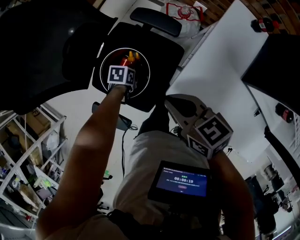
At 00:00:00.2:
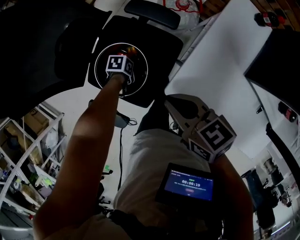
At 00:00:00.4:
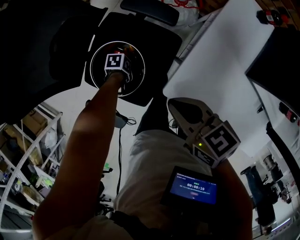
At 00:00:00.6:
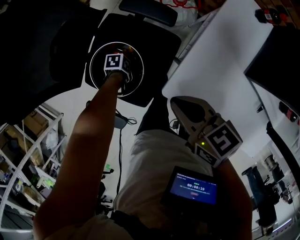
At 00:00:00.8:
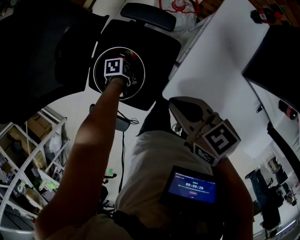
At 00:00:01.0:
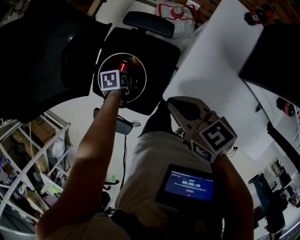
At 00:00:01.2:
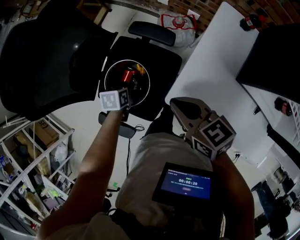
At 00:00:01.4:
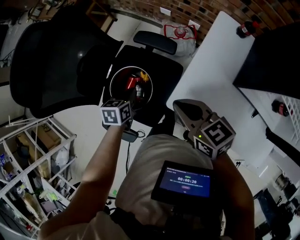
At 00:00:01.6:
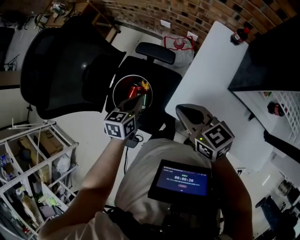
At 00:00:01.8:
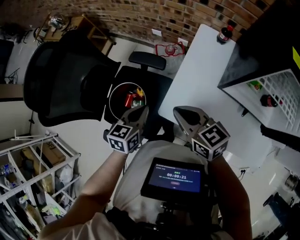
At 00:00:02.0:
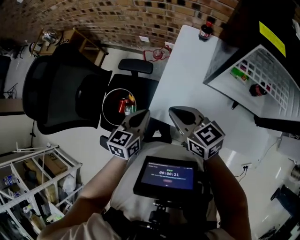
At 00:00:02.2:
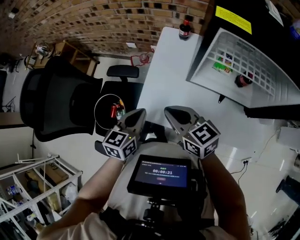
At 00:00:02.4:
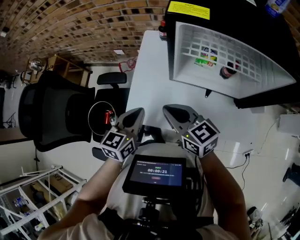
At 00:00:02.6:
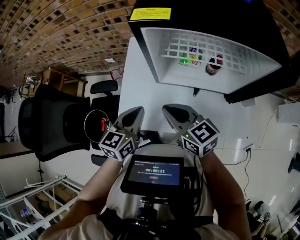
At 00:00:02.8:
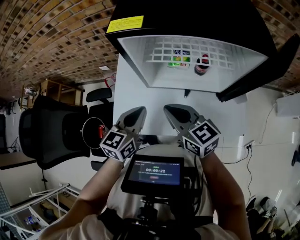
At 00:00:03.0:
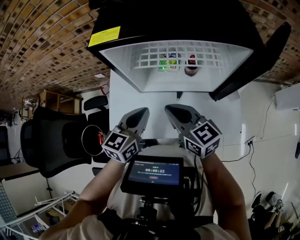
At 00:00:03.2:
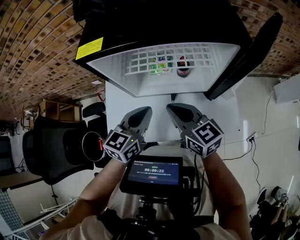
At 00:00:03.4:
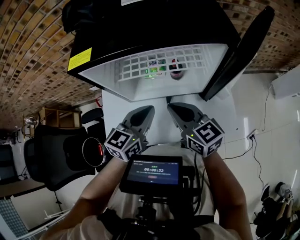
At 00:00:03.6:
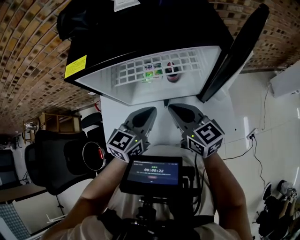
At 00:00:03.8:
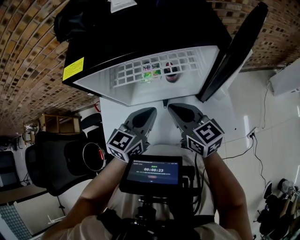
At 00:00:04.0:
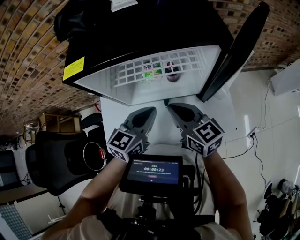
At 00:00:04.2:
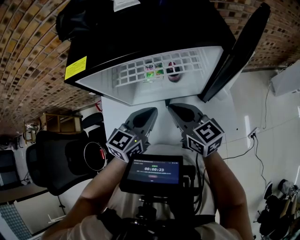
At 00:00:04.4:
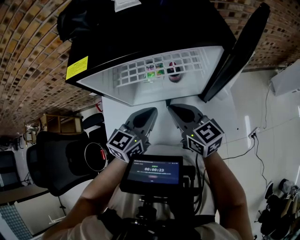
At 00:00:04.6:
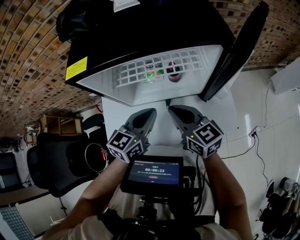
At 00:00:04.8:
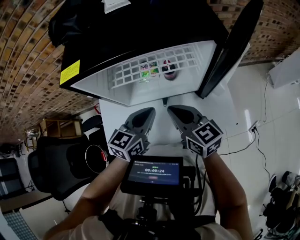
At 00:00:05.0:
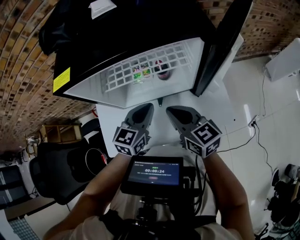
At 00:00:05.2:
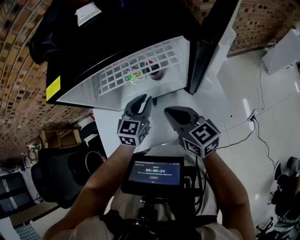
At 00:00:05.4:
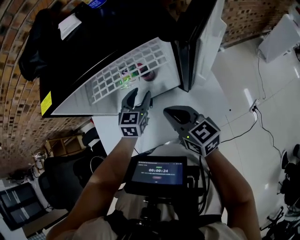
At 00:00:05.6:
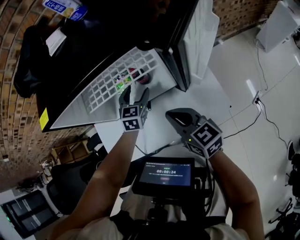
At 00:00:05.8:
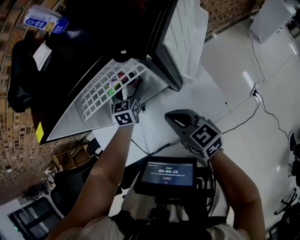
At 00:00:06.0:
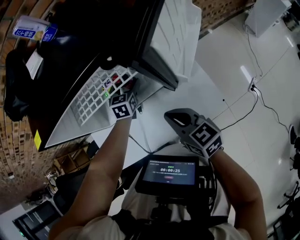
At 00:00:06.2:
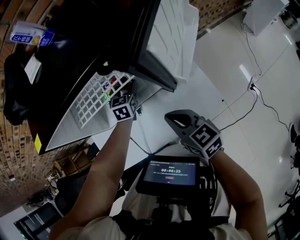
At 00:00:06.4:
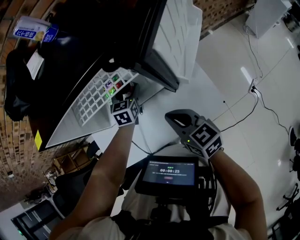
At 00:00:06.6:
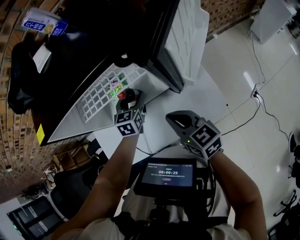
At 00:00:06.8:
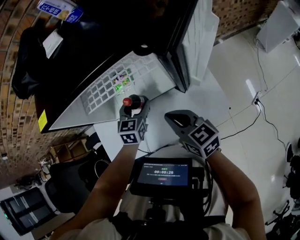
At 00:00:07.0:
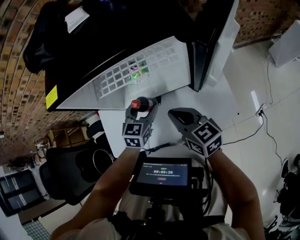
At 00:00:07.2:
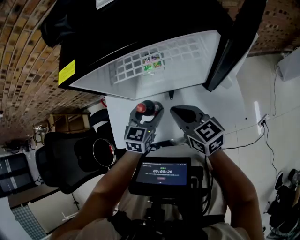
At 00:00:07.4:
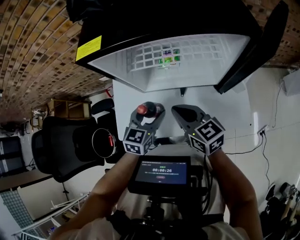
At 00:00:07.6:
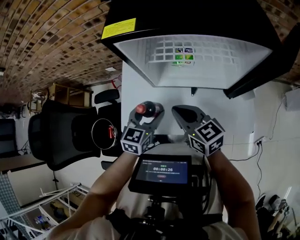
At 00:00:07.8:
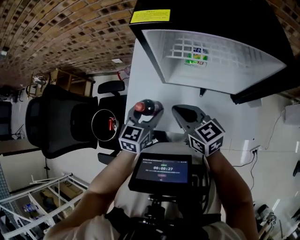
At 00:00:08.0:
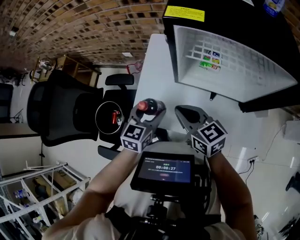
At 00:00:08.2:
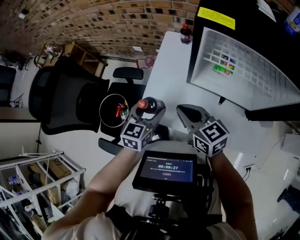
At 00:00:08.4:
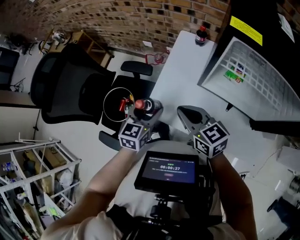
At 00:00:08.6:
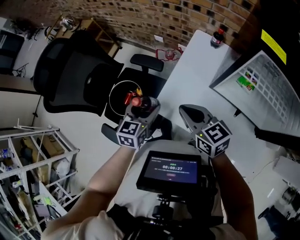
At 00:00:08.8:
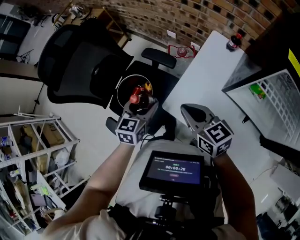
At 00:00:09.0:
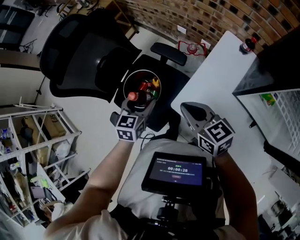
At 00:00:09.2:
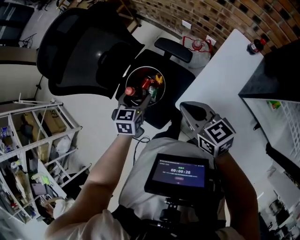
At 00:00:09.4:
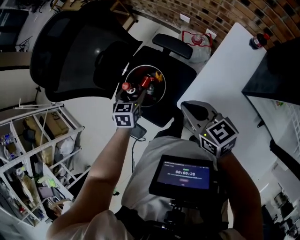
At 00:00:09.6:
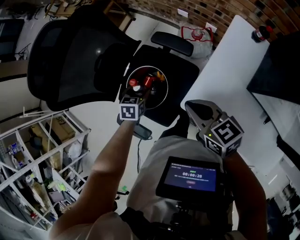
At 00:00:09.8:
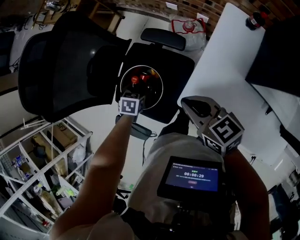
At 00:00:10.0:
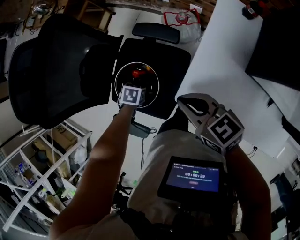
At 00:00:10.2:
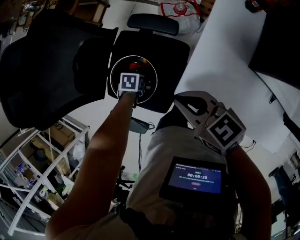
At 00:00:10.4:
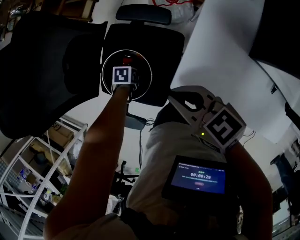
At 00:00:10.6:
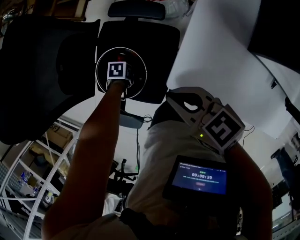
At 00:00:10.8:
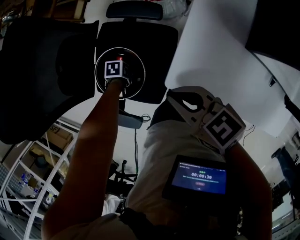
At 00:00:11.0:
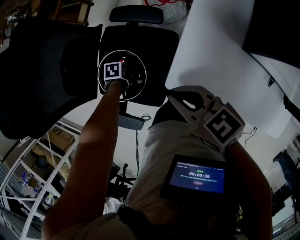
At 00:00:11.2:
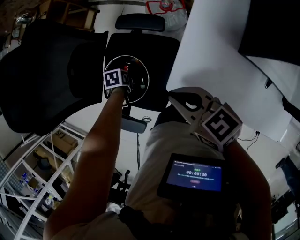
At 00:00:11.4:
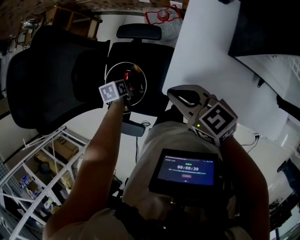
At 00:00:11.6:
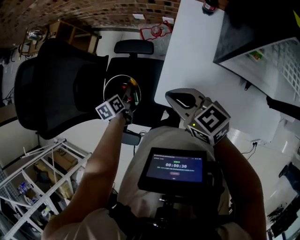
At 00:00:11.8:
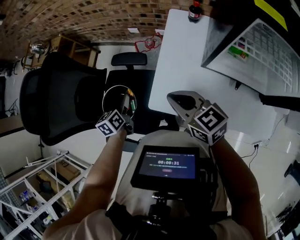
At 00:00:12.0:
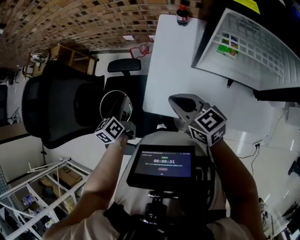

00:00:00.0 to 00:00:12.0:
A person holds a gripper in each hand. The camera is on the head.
00:00:00.0 to 00:00:01.6: The right gripper goes approximately 5 cm upward. Meanwhile the left gripper heads upward, covering some 25 cm, swivels some 40 degrees, and closes up.
00:00:01.6 to 00:00:03.0: The left gripper ends up approximately 50 cm from where it was, and rotates about 40 degrees. The right gripper ends up roughly 35 cm from where it was, and swivels approximately 40 degrees.
00:00:03.0 to 00:00:04.4: The grippers both shift to the right by approximately 10 cm.
00:00:04.4 to 00:00:06.0: The right gripper shifts approximately 15 cm to the right and downward, while the left gripper moves forward, downward and to the right, roughly 25 cm, turns by about 30 degrees, and opens its fingers.
00:00:06.0 to 00:00:07.6: The left gripper shifts about 30 cm to the left and backward. The right gripper moves to the left, approximately 20 cm, and swivels approximately 20 degrees.
00:00:07.6 to 00:00:09.0: The left gripper moves some 40 cm, and swivels roughly 50 degrees. Meanwhile the right gripper changes place by about 30 cm, and swivels some 40 degrees.
00:00:09.0 to 00:00:10.4: The left gripper goes about 30 cm downward, and tips its fingers downward by about 50 degrees. The right gripper changes place by roughly 10 cm.
00:00:10.4 to 00:00:12.0: The left gripper heads upward, covering approximately 30 cm, angles its fingers upward, by approximately 50 degrees, and closes. The right gripper shifts by roughly 20 cm, and swivels some 30 degrees.

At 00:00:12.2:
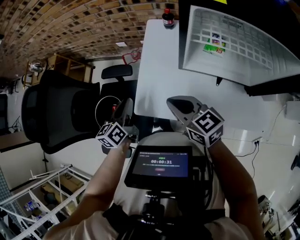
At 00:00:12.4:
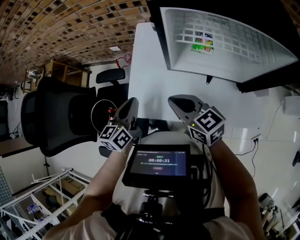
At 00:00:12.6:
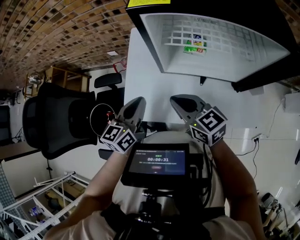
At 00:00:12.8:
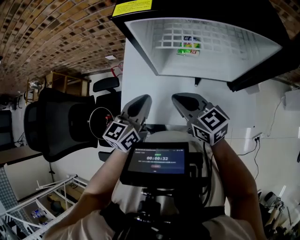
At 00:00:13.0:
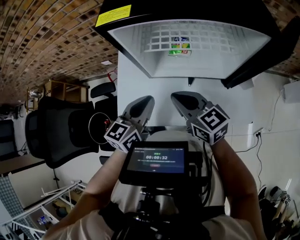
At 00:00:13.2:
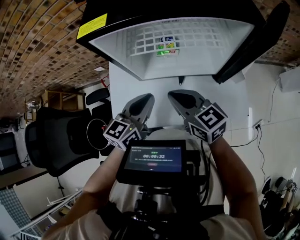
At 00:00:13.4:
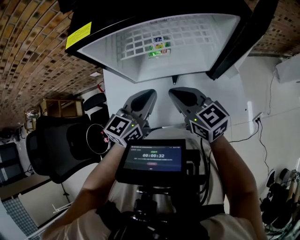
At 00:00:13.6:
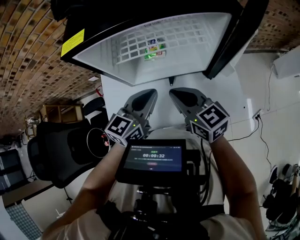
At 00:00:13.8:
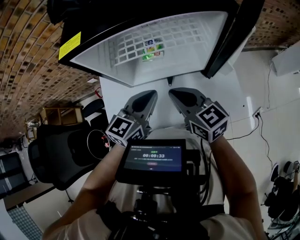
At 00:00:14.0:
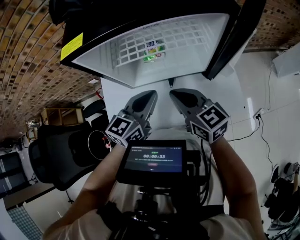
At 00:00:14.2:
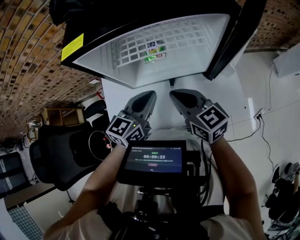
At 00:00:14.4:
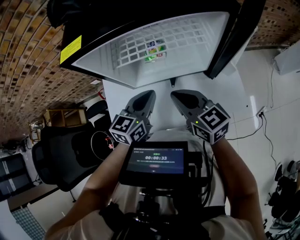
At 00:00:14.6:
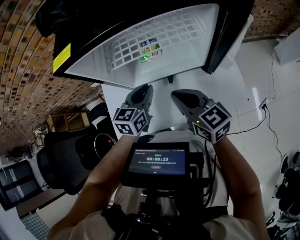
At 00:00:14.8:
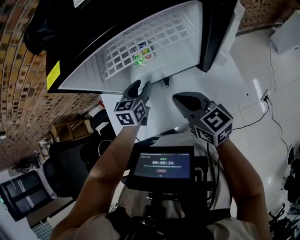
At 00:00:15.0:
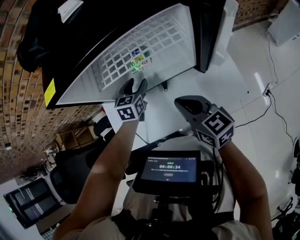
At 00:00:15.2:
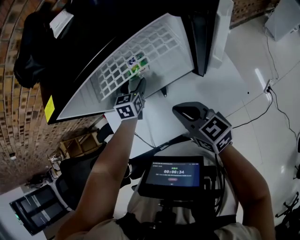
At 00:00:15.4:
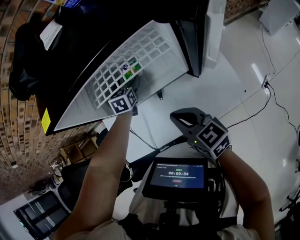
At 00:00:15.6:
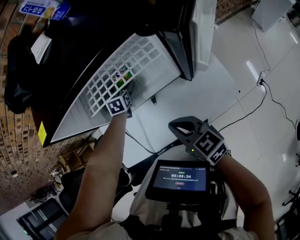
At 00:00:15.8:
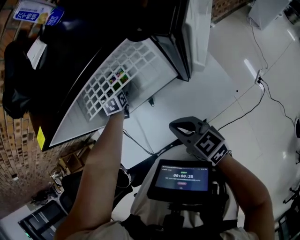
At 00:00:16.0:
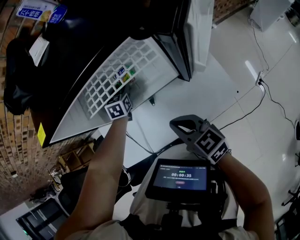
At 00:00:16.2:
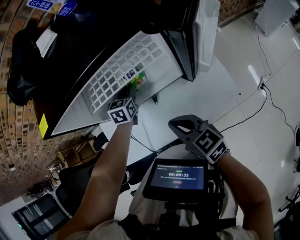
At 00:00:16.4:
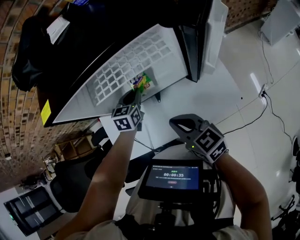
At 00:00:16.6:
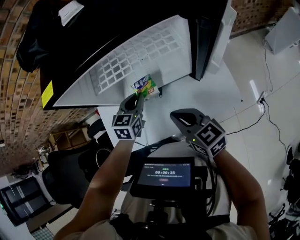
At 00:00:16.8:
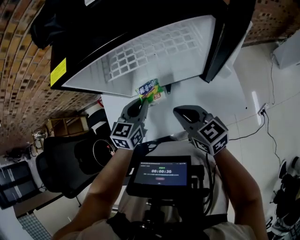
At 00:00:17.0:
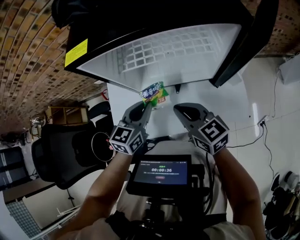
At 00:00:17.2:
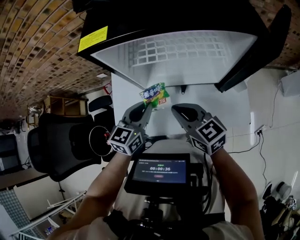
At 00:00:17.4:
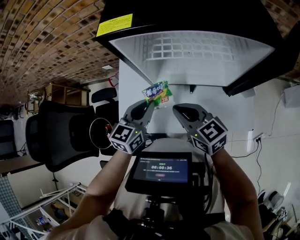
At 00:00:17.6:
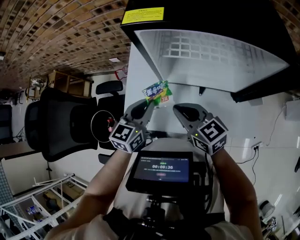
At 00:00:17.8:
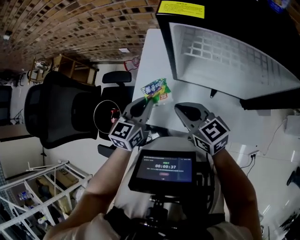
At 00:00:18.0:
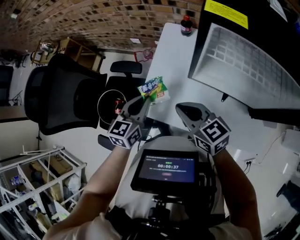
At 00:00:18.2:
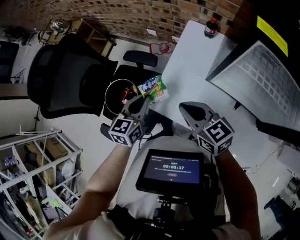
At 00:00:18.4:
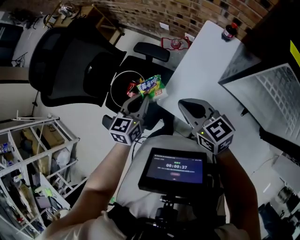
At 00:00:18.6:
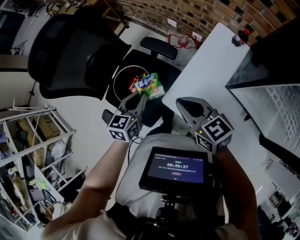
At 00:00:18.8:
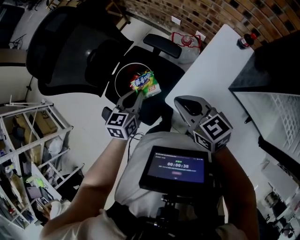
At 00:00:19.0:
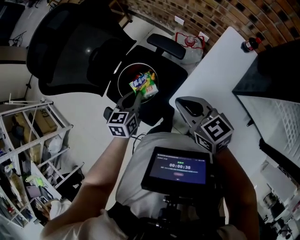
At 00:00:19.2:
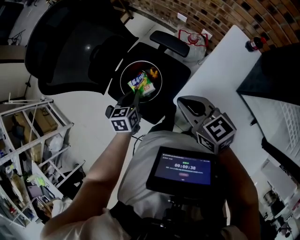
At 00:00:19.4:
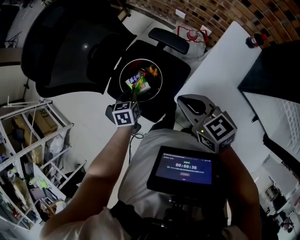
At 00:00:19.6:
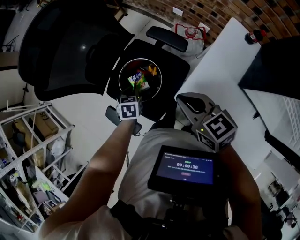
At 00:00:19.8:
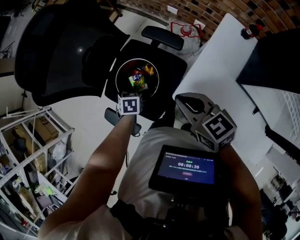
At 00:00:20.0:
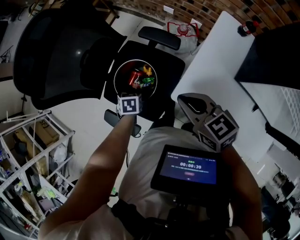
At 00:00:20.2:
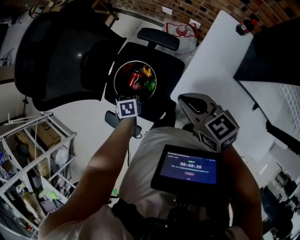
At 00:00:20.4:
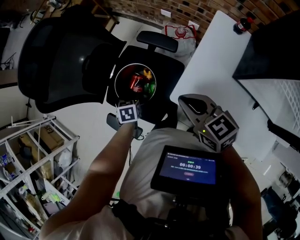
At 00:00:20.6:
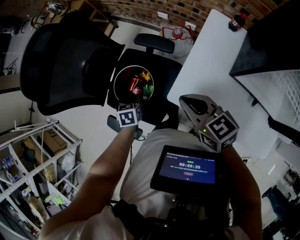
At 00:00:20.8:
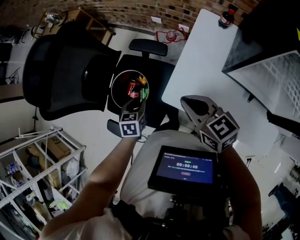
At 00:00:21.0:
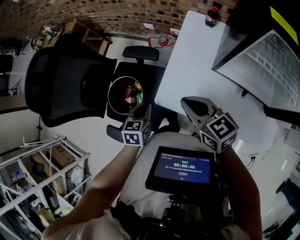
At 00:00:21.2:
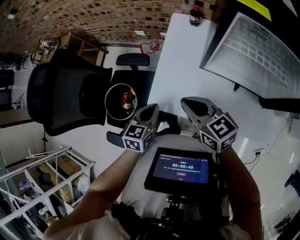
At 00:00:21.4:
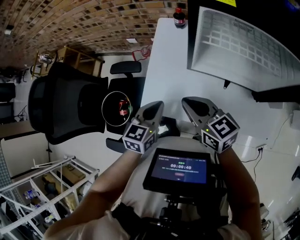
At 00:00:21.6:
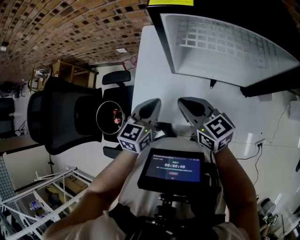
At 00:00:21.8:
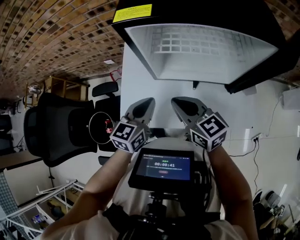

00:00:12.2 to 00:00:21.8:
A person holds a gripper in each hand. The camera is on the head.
00:00:12.2 to 00:00:13.8: The right gripper moves some 25 cm, and turns by some 30 degrees. The left gripper shifts by roughly 40 cm, and rotates roughly 60 degrees.
00:00:13.8 to 00:00:15.4: The left gripper goes approximately 30 cm forward and downward, rotates roughly 30 degrees, and opens up. Meanwhile the right gripper ends up about 5 cm from where it was.
00:00:15.4 to 00:00:17.0: The left gripper goes some 25 cm backward and upward, changes its angle by approximately 20 degrees, and closes.
00:00:17.0 to 00:00:18.6: The left gripper changes place by about 40 cm, and changes its angle by some 50 degrees. The right gripper changes place by roughly 35 cm, and changes its angle by approximately 40 degrees.
00:00:18.6 to 00:00:20.2: The right gripper shifts by approximately 5 cm. The left gripper shifts roughly 20 cm downward and to the left, angles its fingers downward, by roughly 40 degrees, and opens.
00:00:20.2 to 00:00:21.8: The left gripper shifts by some 50 cm, angles its fingers upward, by approximately 40 degrees, and closes; the right gripper shifts by approximately 30 cm, and turns by roughly 40 degrees.

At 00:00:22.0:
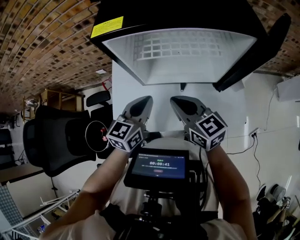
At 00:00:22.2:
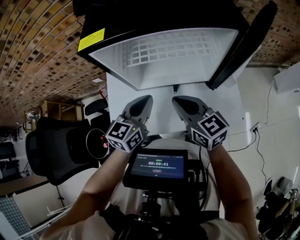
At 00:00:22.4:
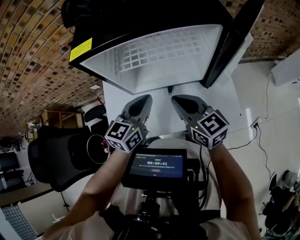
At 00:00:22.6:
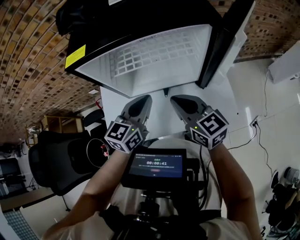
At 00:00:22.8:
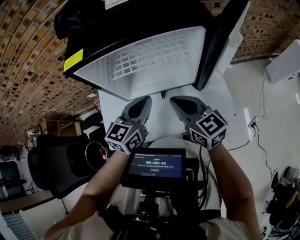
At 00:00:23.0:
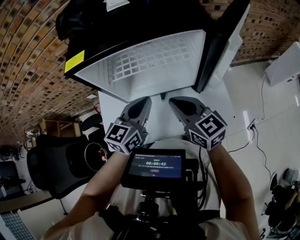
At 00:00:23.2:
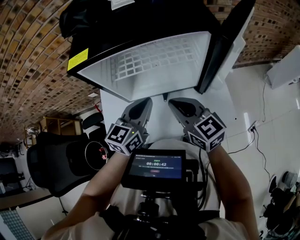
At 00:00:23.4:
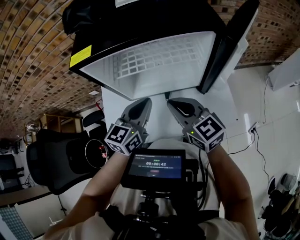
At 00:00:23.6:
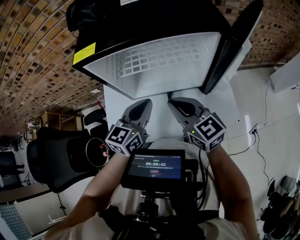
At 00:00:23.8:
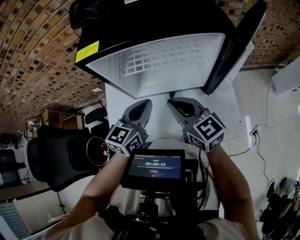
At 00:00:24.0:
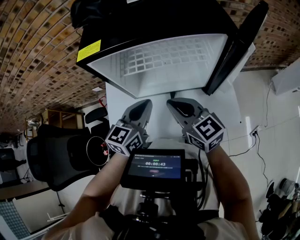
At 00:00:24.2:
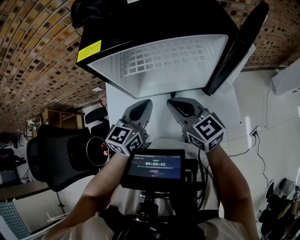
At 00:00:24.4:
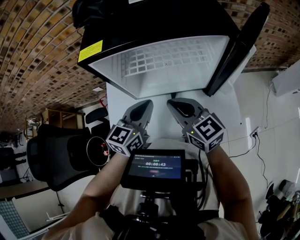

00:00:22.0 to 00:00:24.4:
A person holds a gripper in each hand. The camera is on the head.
00:00:22.0 to 00:00:23.2: The two grippers go some 10 cm to the right.
00:00:23.2 to 00:00:24.4: The grippers make only small movements.
